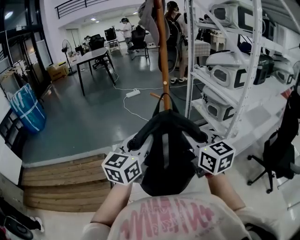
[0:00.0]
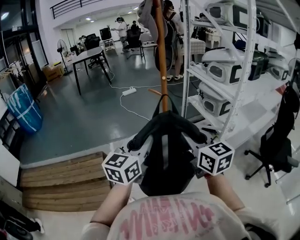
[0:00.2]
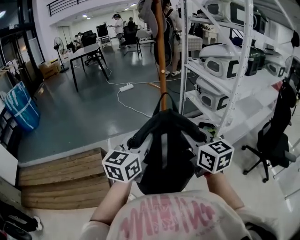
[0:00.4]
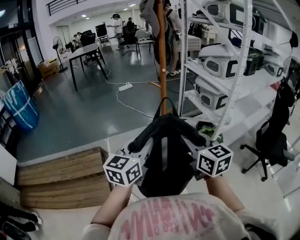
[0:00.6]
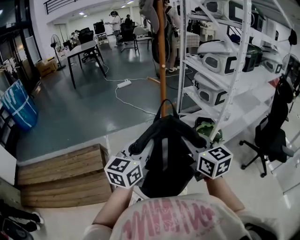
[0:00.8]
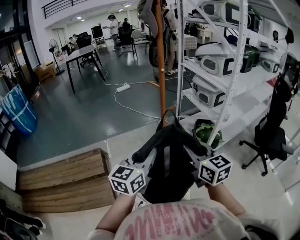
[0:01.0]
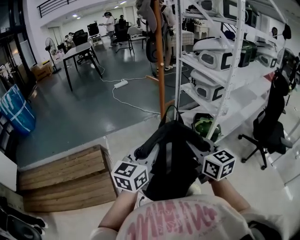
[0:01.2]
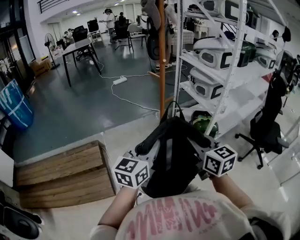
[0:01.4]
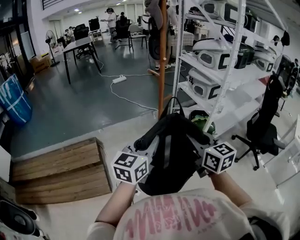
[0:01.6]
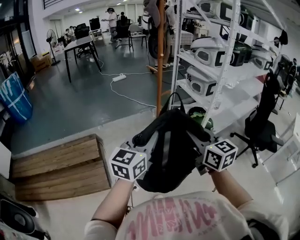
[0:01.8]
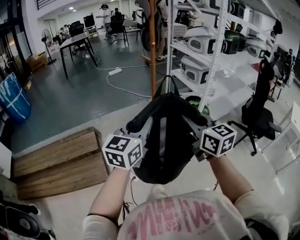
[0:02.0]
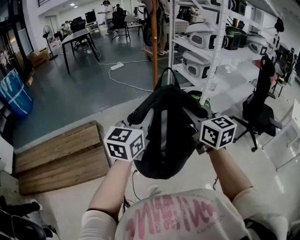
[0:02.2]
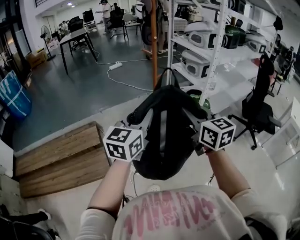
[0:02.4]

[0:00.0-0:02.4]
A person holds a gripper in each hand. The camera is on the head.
0.0 to 1.2 s: Both grippers move backward and downward, about 15 cm.
1.2 to 2.4 s: Both grippers travel together backward, approximately 15 cm.

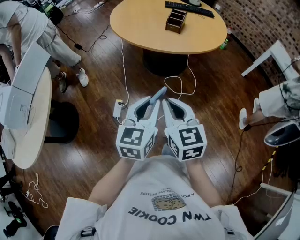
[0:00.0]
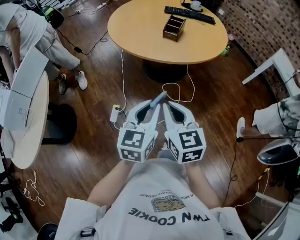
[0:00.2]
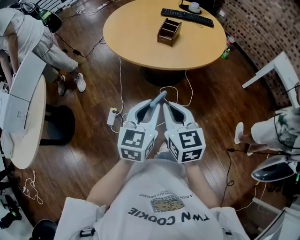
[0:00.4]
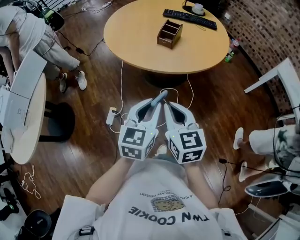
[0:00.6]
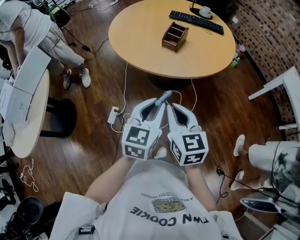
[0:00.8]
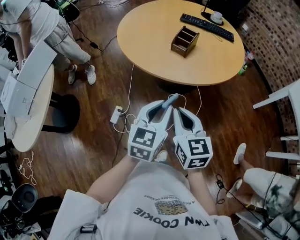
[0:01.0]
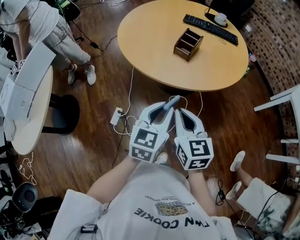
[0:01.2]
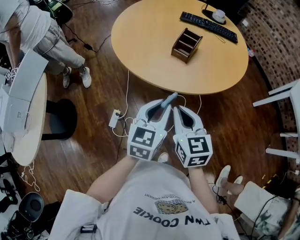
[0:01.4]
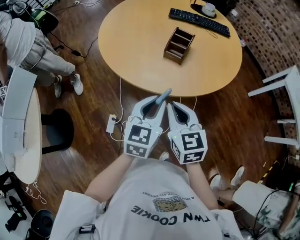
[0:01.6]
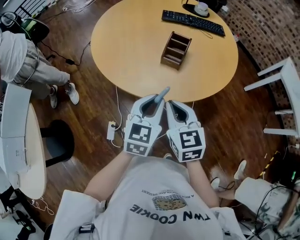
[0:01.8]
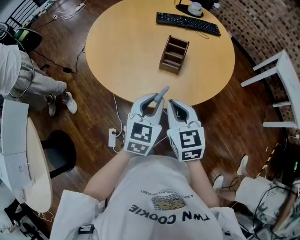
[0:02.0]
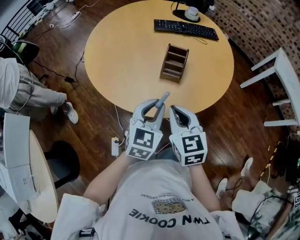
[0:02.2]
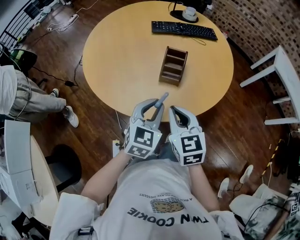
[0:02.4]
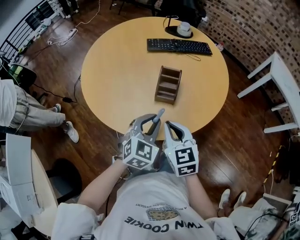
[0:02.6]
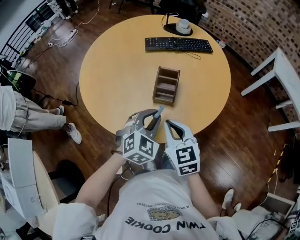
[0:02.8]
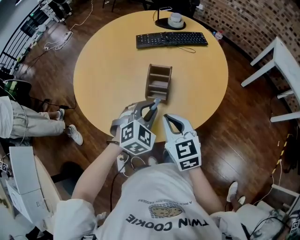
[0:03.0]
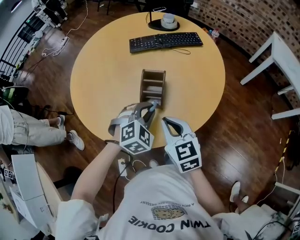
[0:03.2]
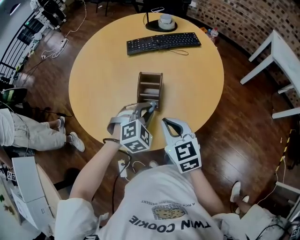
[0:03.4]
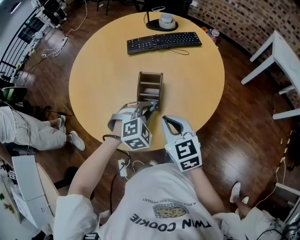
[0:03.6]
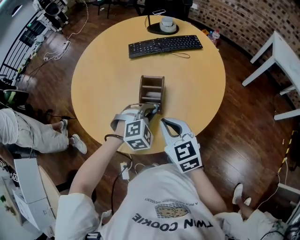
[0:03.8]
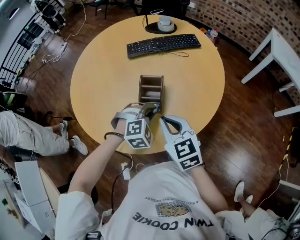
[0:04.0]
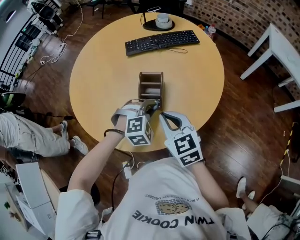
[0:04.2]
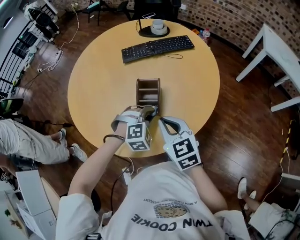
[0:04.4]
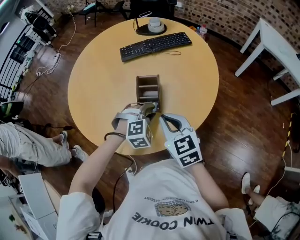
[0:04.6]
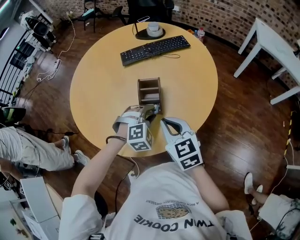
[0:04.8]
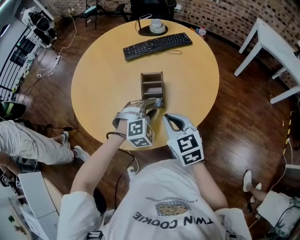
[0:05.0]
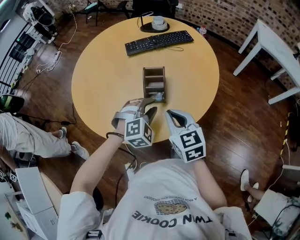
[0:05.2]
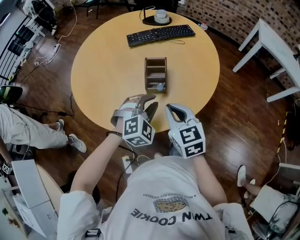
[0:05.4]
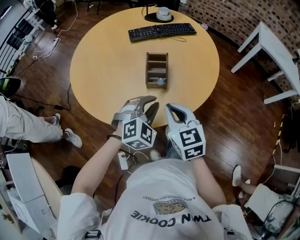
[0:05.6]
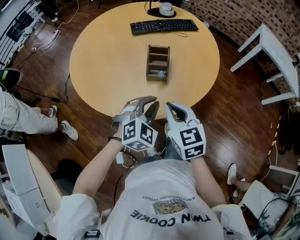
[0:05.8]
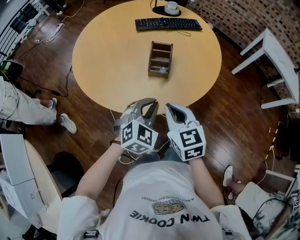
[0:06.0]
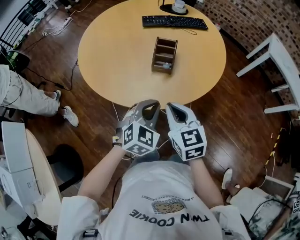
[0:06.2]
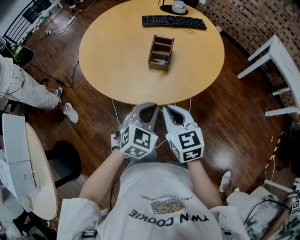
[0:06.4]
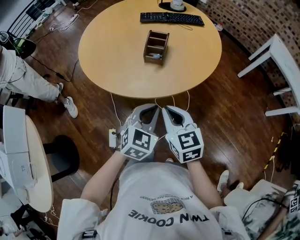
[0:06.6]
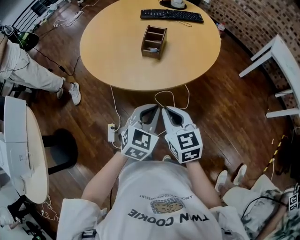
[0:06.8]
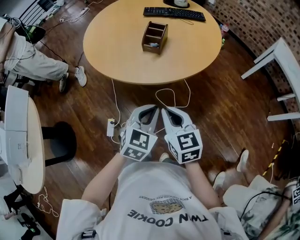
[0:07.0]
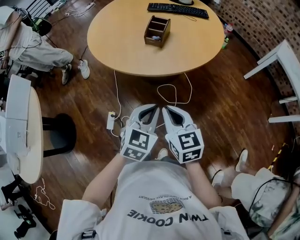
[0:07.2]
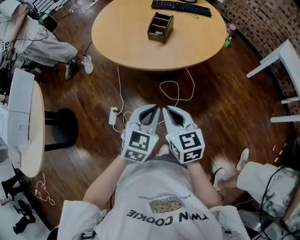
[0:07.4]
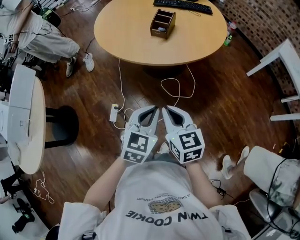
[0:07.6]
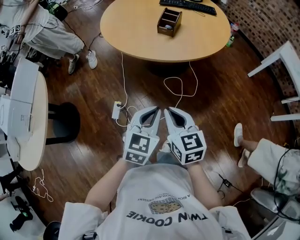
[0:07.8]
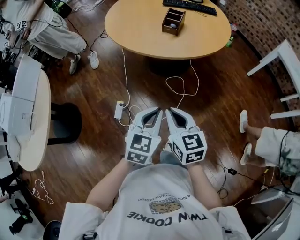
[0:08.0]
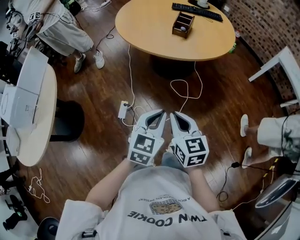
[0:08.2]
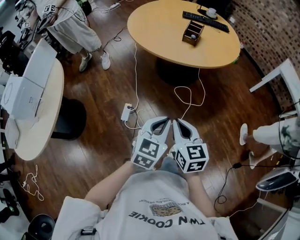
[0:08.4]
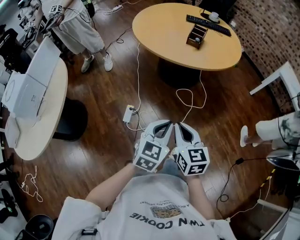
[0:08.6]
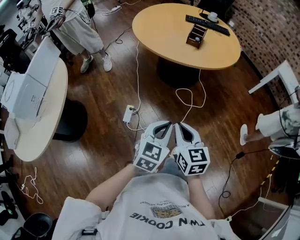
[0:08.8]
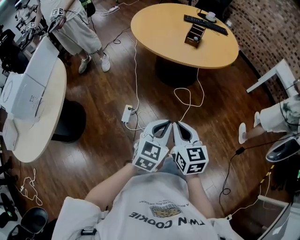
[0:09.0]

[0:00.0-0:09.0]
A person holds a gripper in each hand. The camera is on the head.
0.0 to 1.6 s: The grippers both shift forward by approximately 30 cm.
1.6 to 3.0 s: Both grippers travel together forward, about 20 cm. The left gripper rolls clockwise, seen from behind, by approximately 50 degrees.
3.0 to 4.4 s: The left gripper goes approximately 5 cm downward, and changes its angle by approximately 30 degrees.
4.4 to 6.0 s: The right gripper is displaced backward by about 15 cm. Meanwhile the left gripper goes approximately 20 cm backward and upward, and swivels approximately 40 degrees.
6.0 to 7.6 s: The two grippers go approximately 30 cm backward. The left gripper swivels some 30 degrees.
7.6 to 9.0 s: The grippers both shift backward and to the left by about 25 cm.

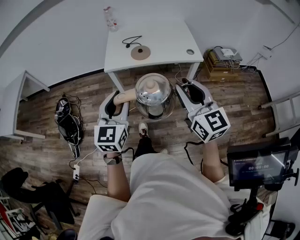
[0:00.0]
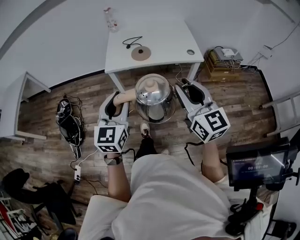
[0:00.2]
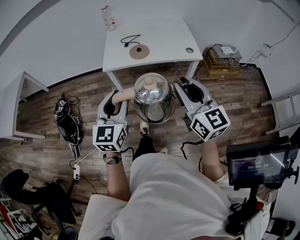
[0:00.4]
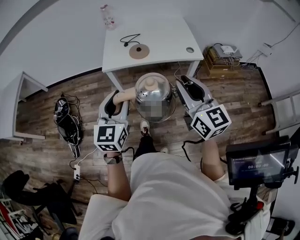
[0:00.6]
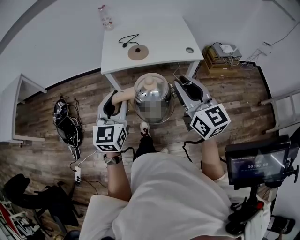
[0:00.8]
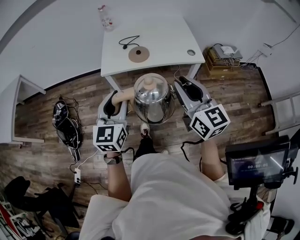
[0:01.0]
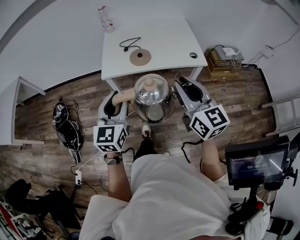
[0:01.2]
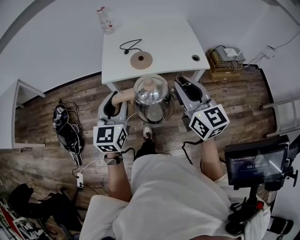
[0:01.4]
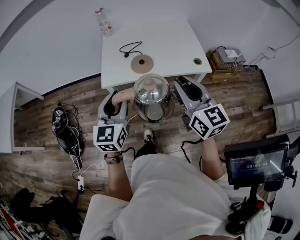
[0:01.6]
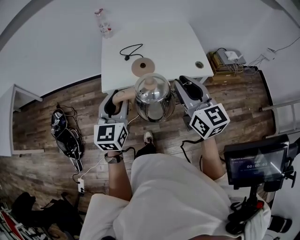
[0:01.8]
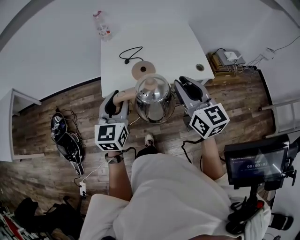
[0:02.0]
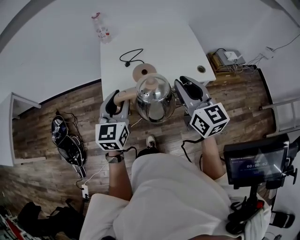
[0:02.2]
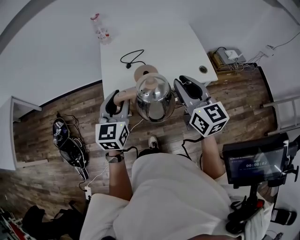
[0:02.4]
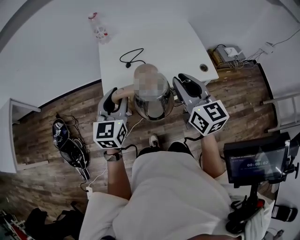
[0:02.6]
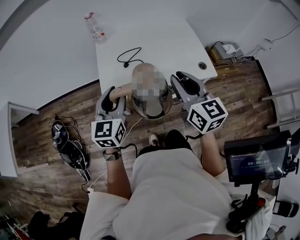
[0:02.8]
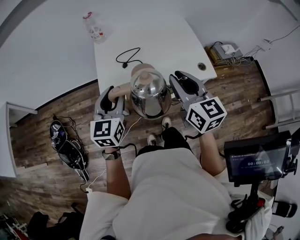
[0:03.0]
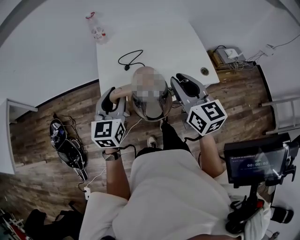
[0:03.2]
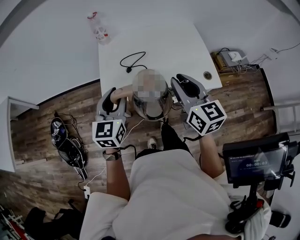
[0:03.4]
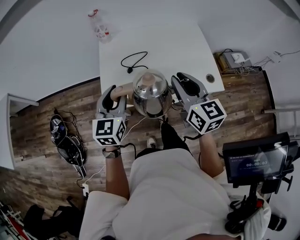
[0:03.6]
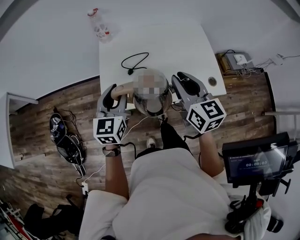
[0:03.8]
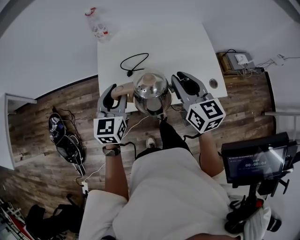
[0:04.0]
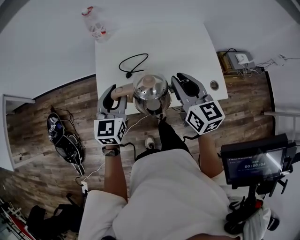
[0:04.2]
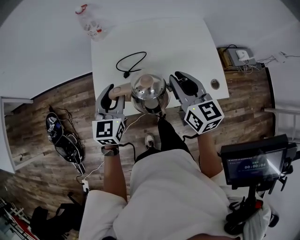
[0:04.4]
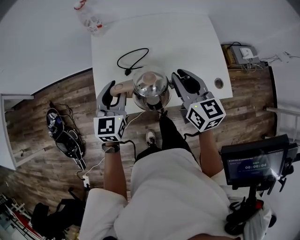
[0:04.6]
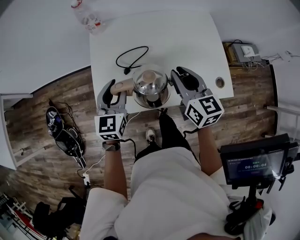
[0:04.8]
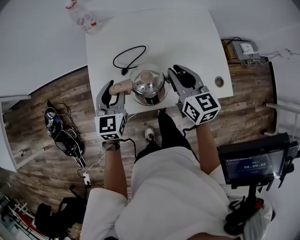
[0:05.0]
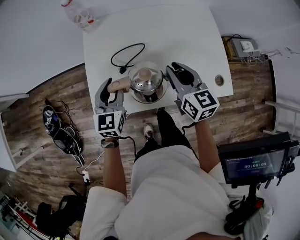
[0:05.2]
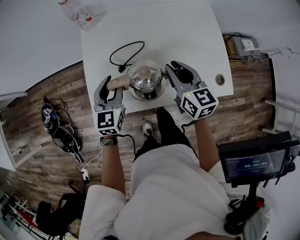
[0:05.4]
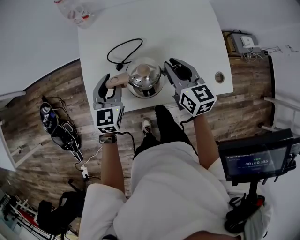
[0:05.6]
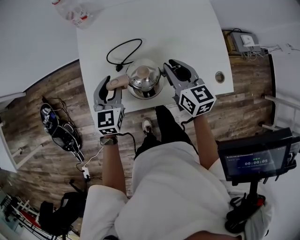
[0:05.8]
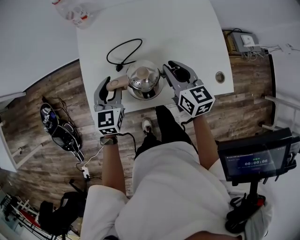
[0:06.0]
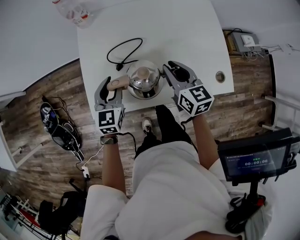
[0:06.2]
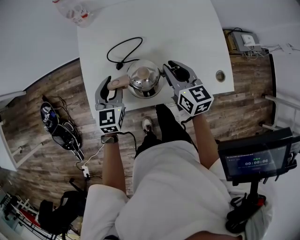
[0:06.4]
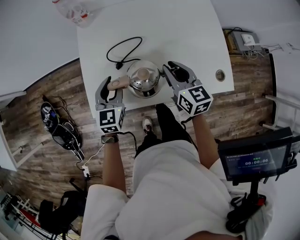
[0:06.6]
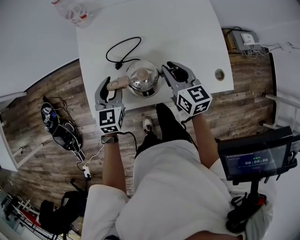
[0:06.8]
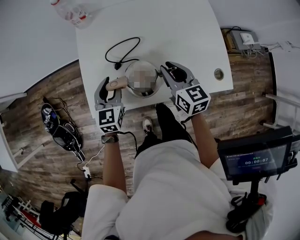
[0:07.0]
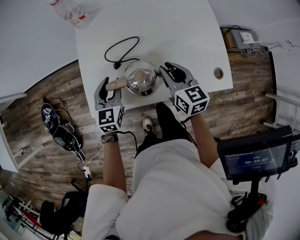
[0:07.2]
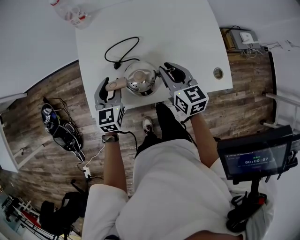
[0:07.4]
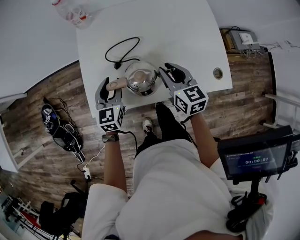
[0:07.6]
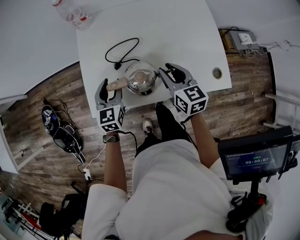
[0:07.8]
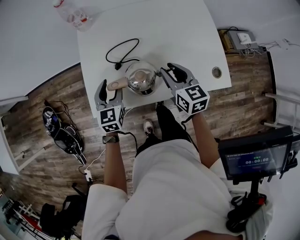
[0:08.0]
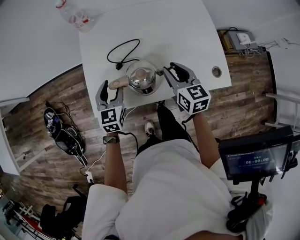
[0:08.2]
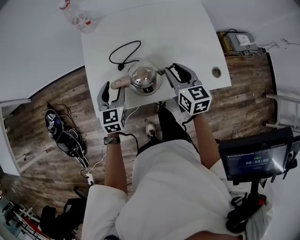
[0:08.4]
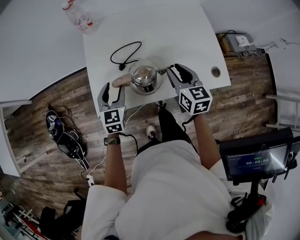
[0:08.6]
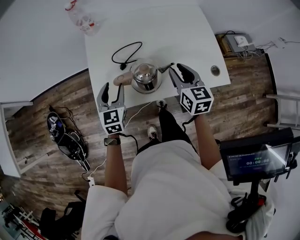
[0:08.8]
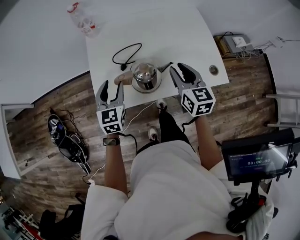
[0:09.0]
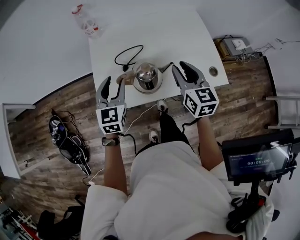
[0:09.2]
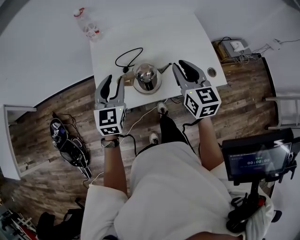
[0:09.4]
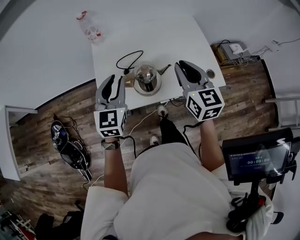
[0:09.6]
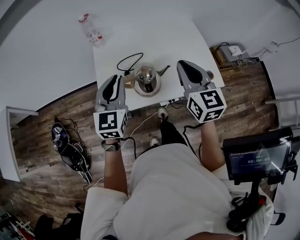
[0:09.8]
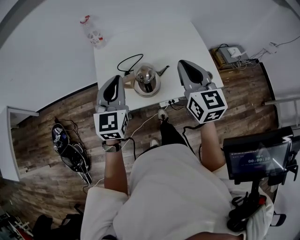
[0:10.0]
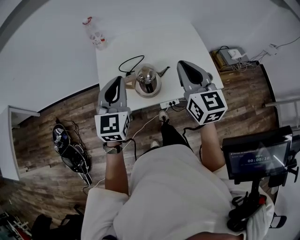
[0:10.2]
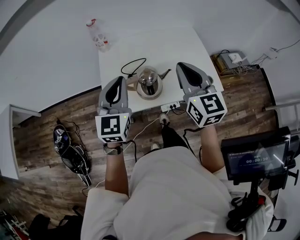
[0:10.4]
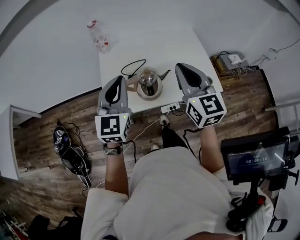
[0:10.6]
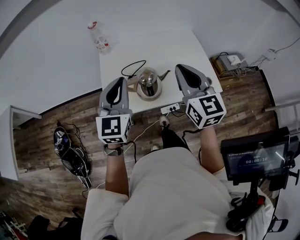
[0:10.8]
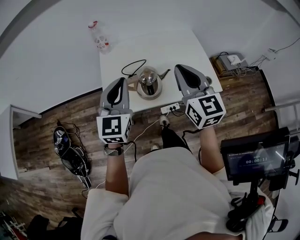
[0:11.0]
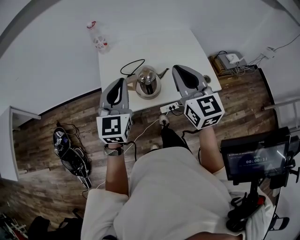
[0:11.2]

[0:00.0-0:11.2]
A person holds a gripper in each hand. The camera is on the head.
0.0 to 1.6 s: Both grippers move forward, roughly 20 cm.
1.6 to 3.2 s: Both grippers travel together forward, about 15 cm.
3.2 to 4.8 s: Both grippers move forward and downward, about 20 cm.
4.8 to 6.4 s: The two grippers go roughly 10 cm downward.
6.4 to 8.0 s: The grippers move only a little.
8.0 to 9.6 s: The left gripper moves upward, some 20 cm, and closes up, while the right gripper travels upward and backward by some 20 cm, and swivels some 20 degrees.
9.6 to 11.2 s: Both grippers travel together upward, roughly 5 cm. The left gripper closes its fingers.

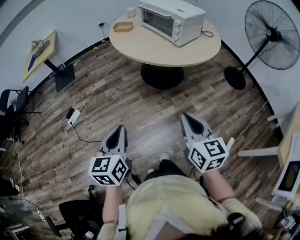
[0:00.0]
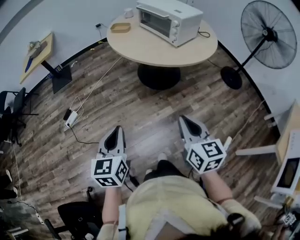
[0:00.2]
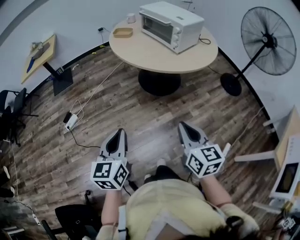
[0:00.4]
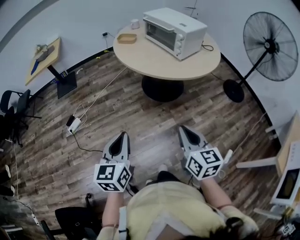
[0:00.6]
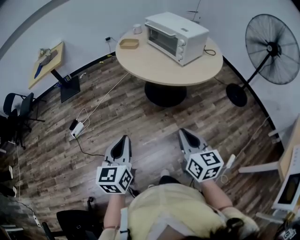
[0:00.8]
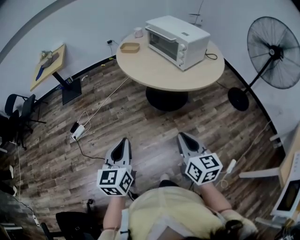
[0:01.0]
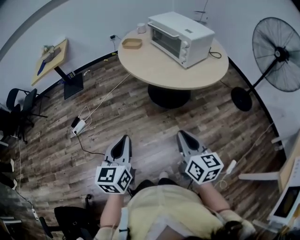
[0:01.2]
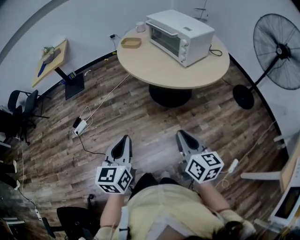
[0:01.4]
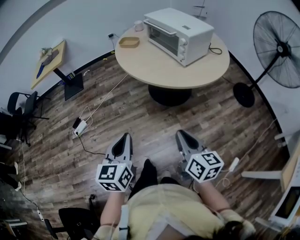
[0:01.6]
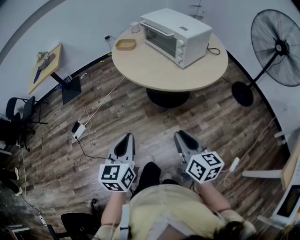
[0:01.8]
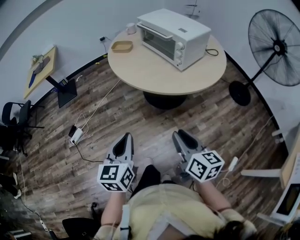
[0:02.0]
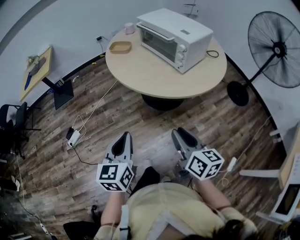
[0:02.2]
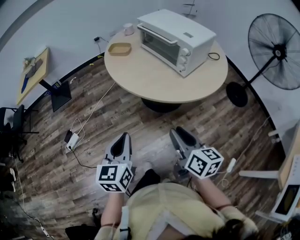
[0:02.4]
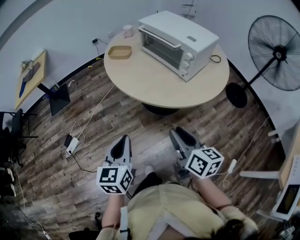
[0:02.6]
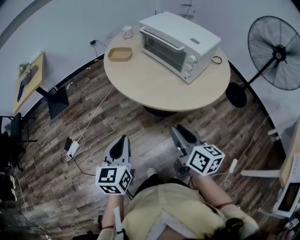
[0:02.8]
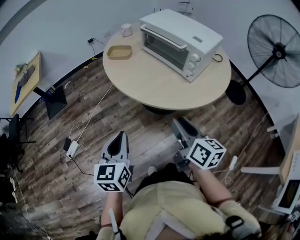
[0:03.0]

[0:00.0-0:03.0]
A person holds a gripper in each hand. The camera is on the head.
0.0 to 1.6 s: The grippers both shift forward by approximately 5 cm.
1.6 to 3.0 s: Both grippers move forward, some 20 cm. The right gripper opens its fingers.
